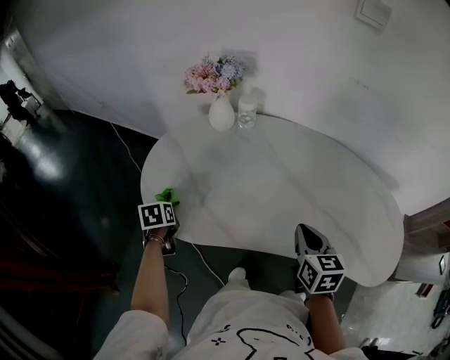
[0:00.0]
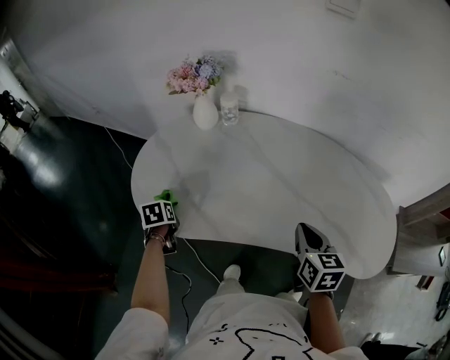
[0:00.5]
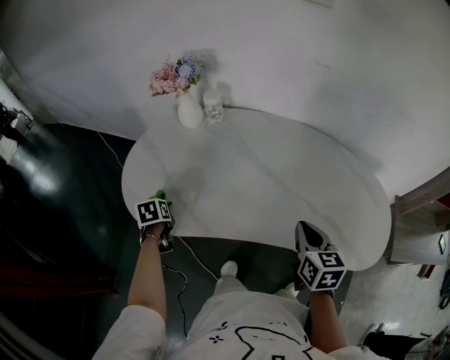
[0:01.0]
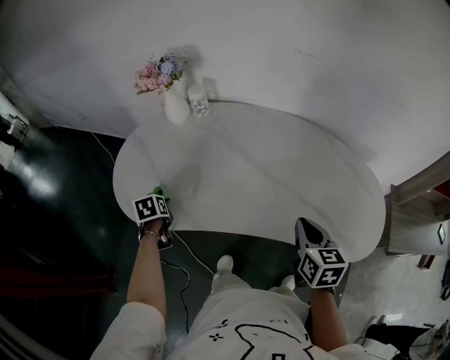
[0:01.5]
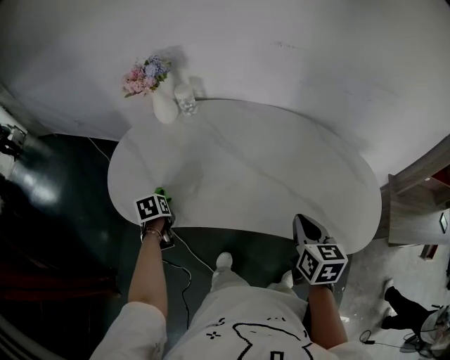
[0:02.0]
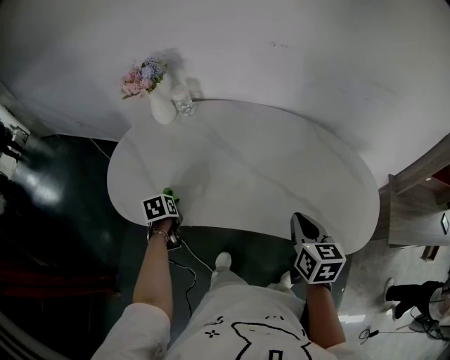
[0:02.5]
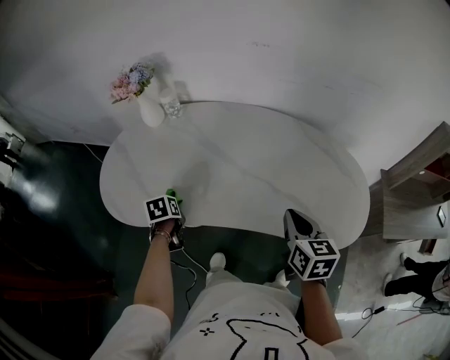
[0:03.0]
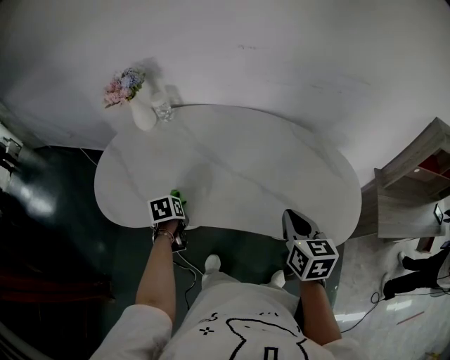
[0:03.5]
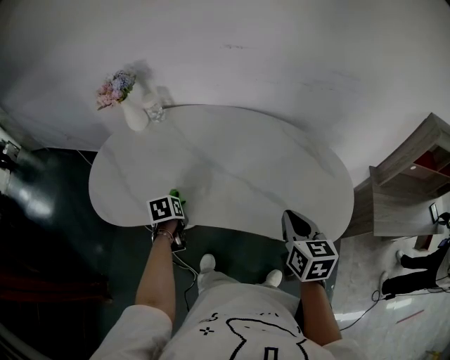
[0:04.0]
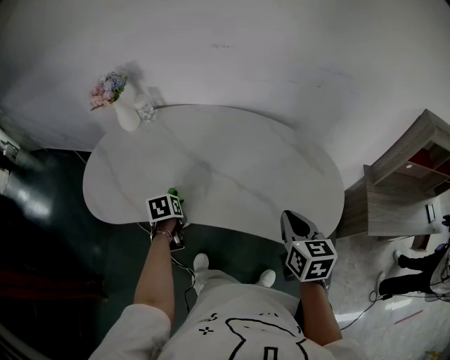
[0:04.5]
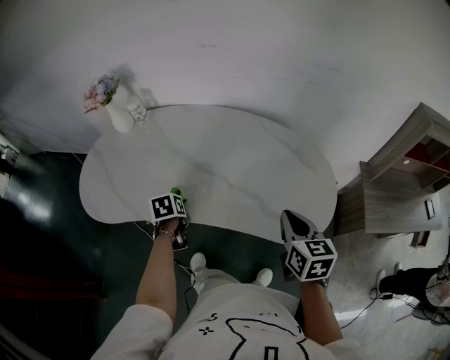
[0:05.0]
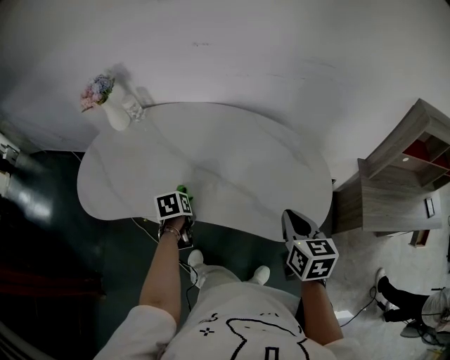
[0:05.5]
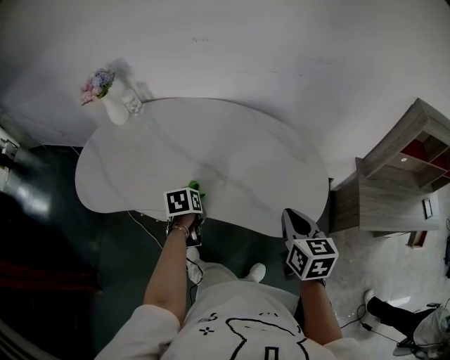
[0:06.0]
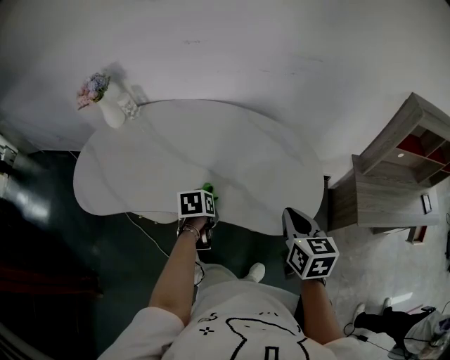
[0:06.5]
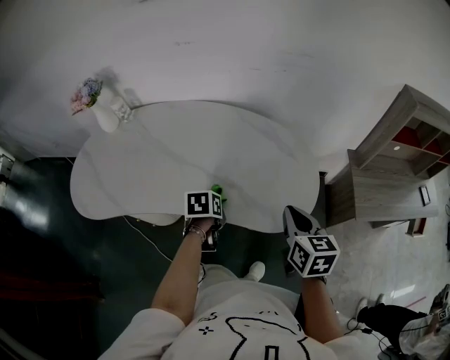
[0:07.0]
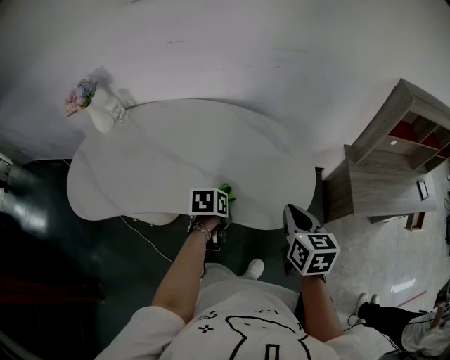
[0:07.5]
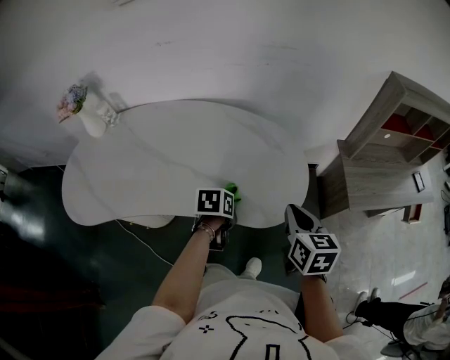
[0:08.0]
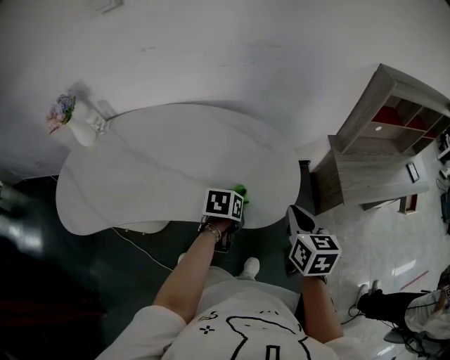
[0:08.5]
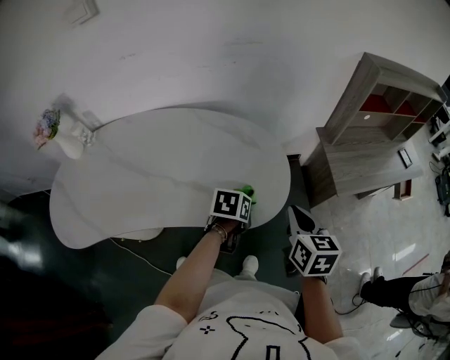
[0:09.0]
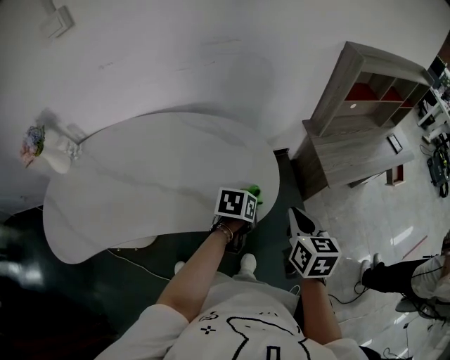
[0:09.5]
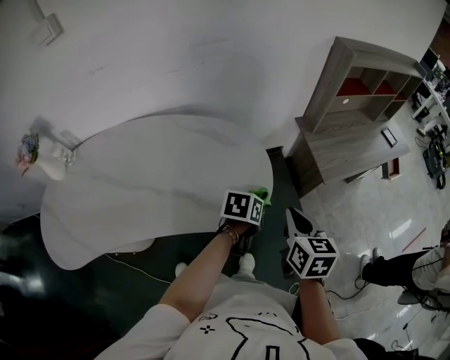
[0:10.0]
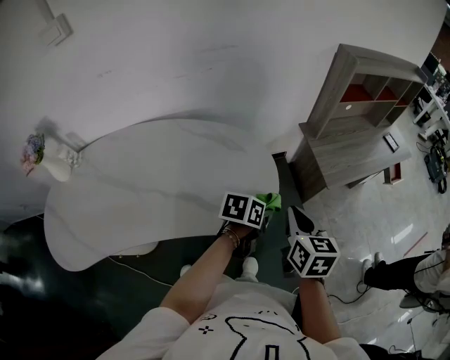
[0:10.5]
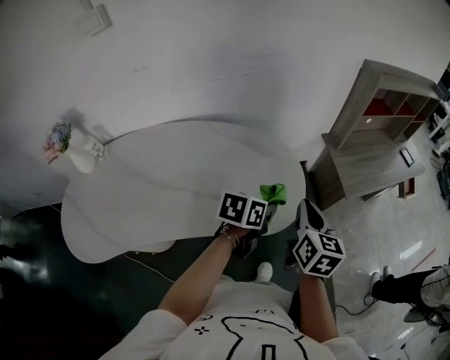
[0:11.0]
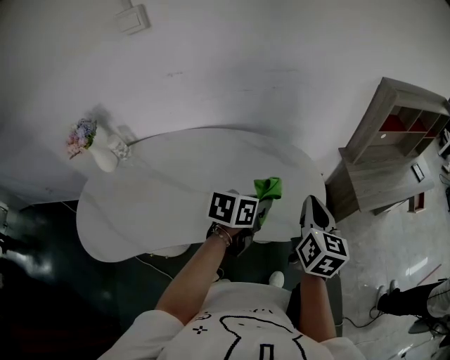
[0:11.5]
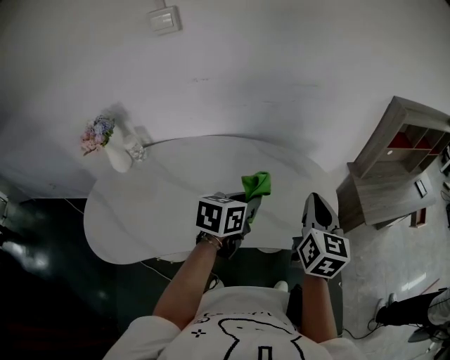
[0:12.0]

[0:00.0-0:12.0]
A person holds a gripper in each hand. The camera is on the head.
0:00.0 to 0:02.0: The right gripper heads to the right and backward, covering some 20 cm. Meanwhile the left gripper moves to the right, roughly 15 cm.
0:02.0 to 0:04.0: The right gripper shifts roughly 10 cm to the right. Meanwhile the left gripper heads to the right, covering roughly 20 cm.
0:04.0 to 0:06.0: The right gripper moves to the right and backward, about 15 cm, while the left gripper travels to the right by approximately 20 cm.
0:06.0 to 0:08.0: The right gripper is displaced to the right by approximately 5 cm; the left gripper travels to the right by about 20 cm, and rotates about 30 degrees.
0:08.0 to 0:10.0: The right gripper moves about 10 cm; the left gripper ends up about 20 cm from where it was, and swivels approximately 30 degrees.
0:10.0 to 0:12.0: Both grippers move to the left and upward, about 30 cm. The right gripper rotates approximately 20 degrees; the left gripper turns by about 30 degrees.

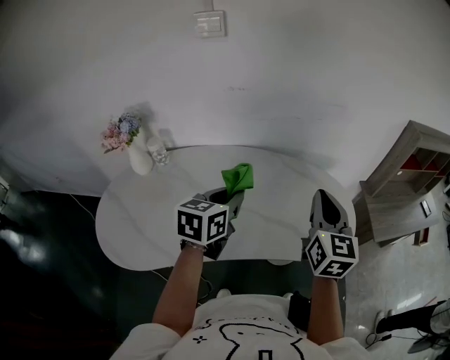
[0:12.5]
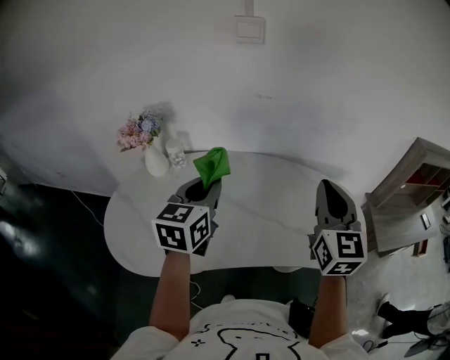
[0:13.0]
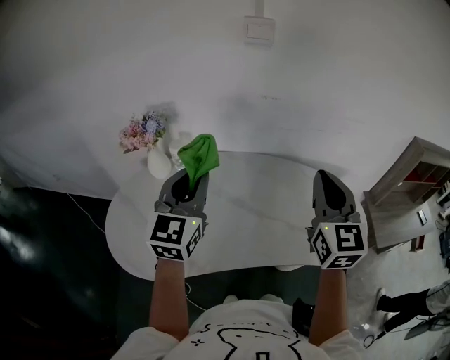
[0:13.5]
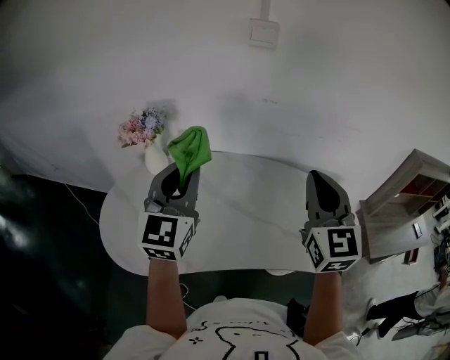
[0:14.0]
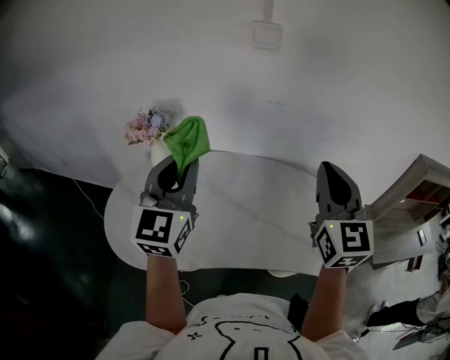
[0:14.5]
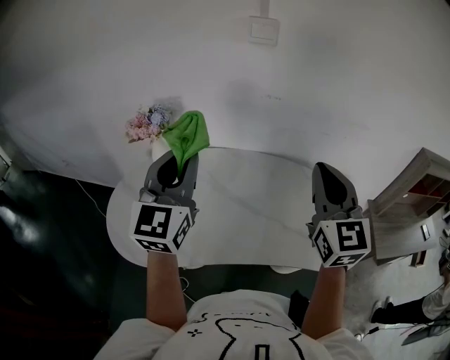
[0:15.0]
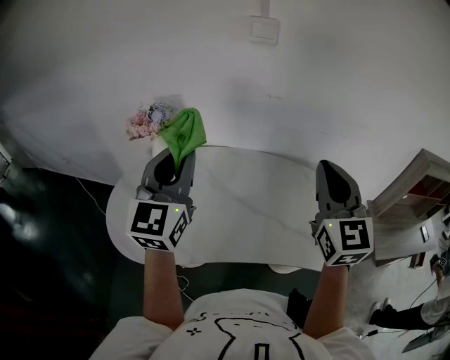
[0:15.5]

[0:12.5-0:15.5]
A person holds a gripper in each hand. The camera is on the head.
0:12.5 to 0:14.0: Both grippers move to the left and upward, approximately 20 cm. The right gripper swivels about 20 degrees. The left gripper tips its fingers upward by about 30 degrees.
0:14.0 to 0:15.5: There are only small adjustments of the grippers.

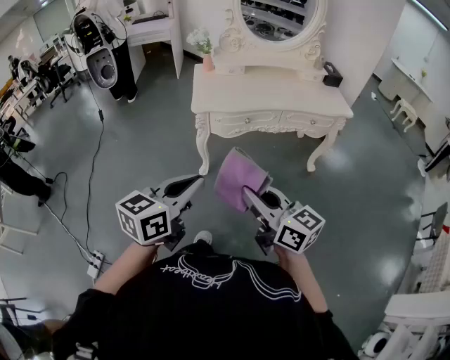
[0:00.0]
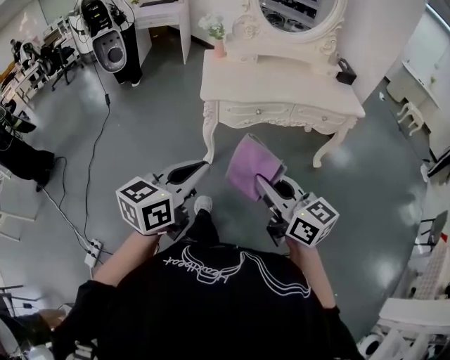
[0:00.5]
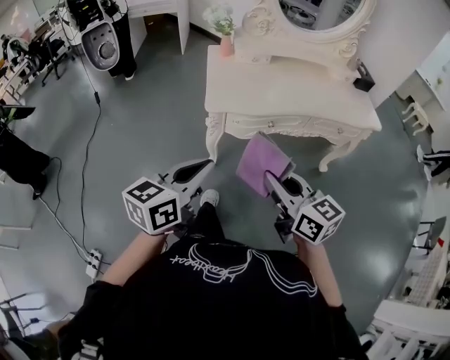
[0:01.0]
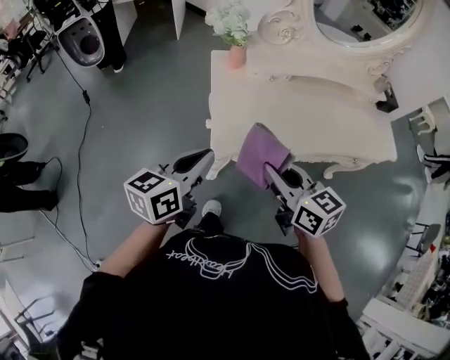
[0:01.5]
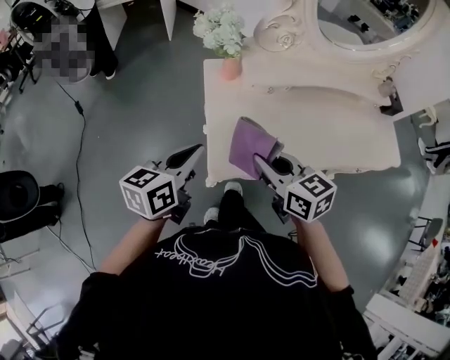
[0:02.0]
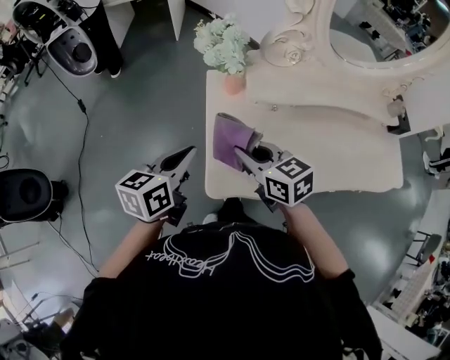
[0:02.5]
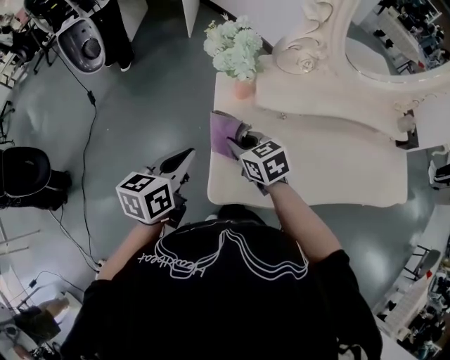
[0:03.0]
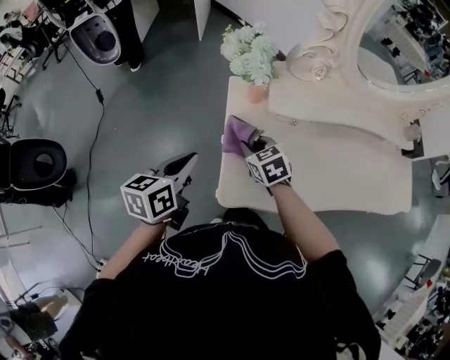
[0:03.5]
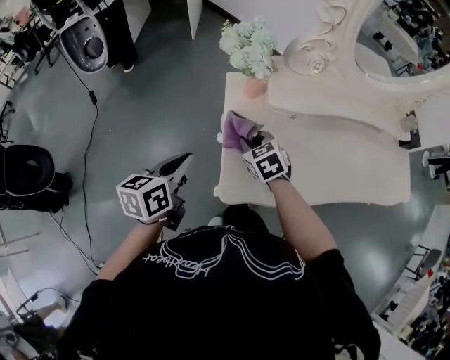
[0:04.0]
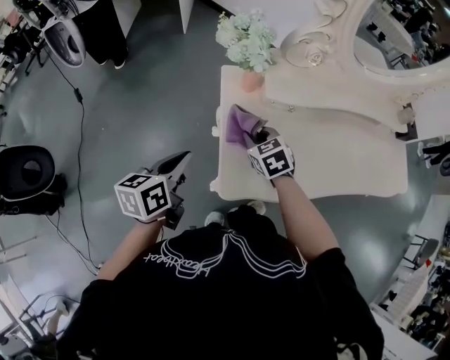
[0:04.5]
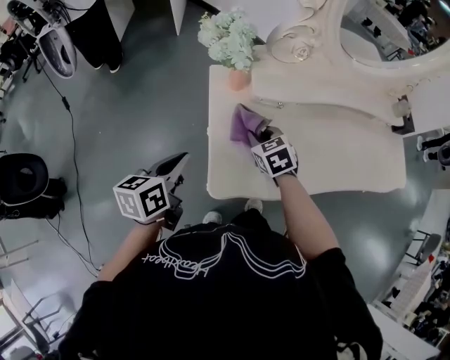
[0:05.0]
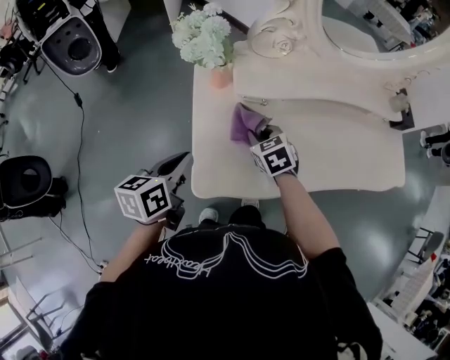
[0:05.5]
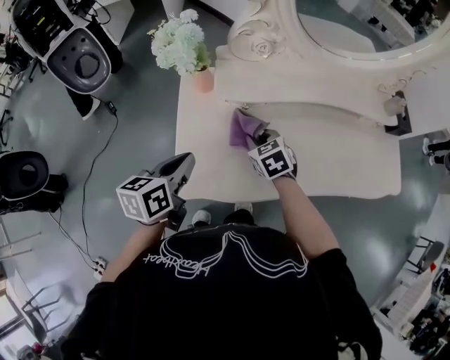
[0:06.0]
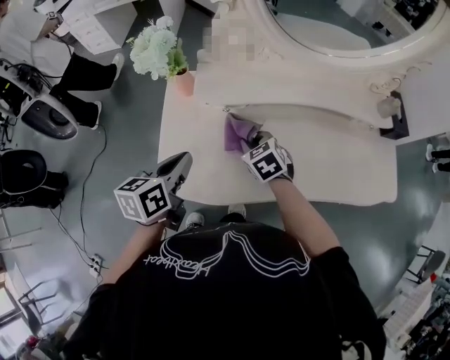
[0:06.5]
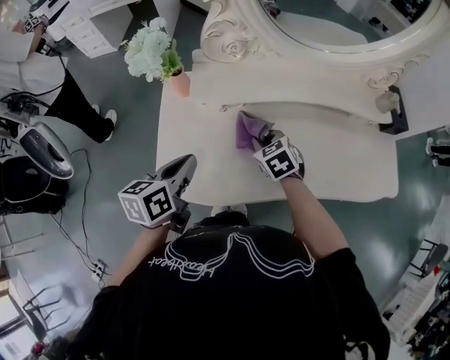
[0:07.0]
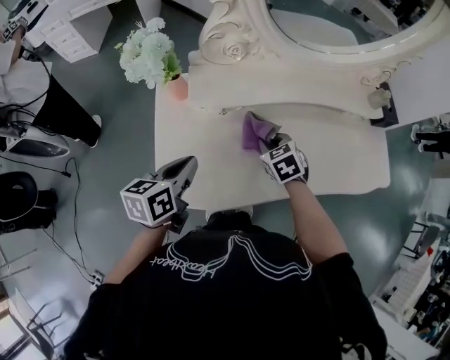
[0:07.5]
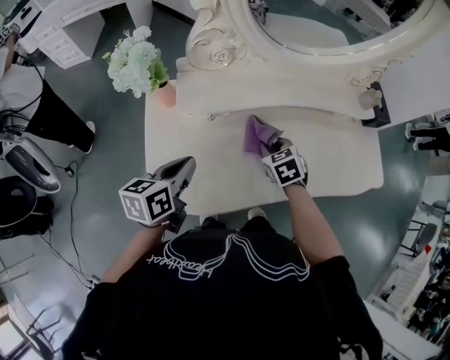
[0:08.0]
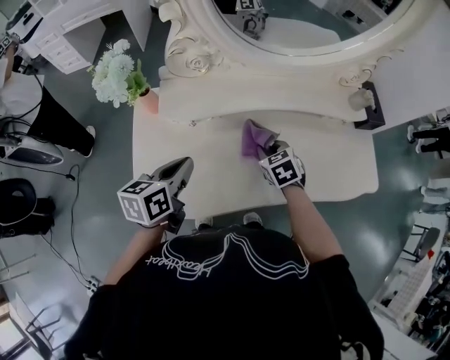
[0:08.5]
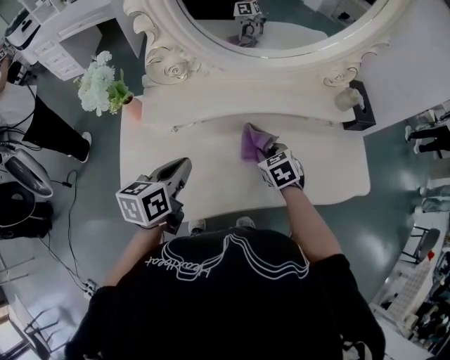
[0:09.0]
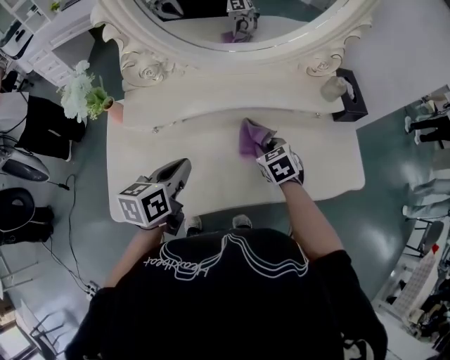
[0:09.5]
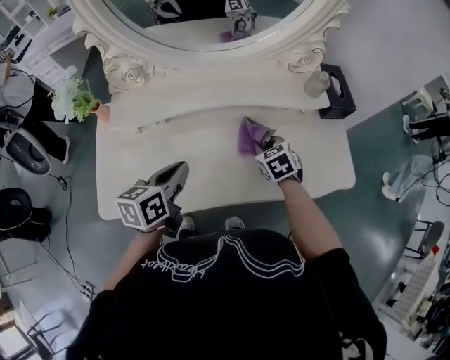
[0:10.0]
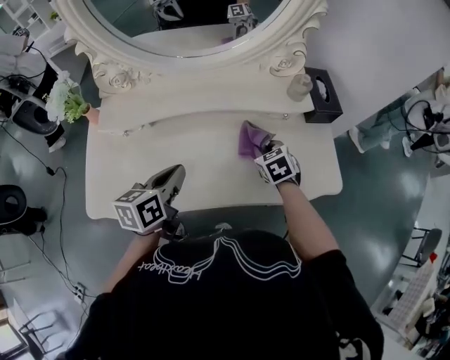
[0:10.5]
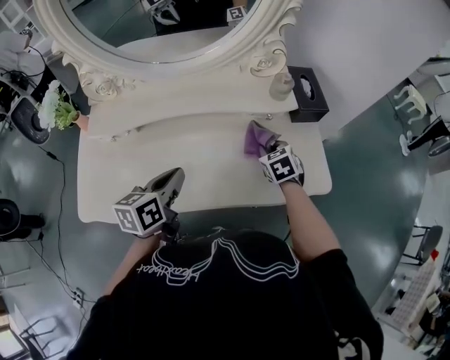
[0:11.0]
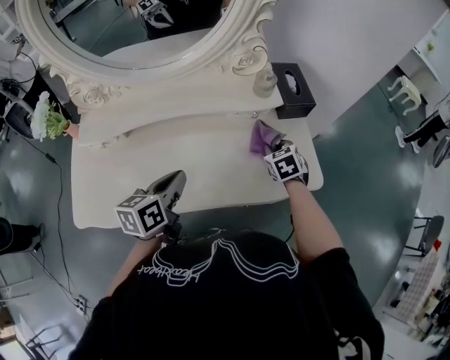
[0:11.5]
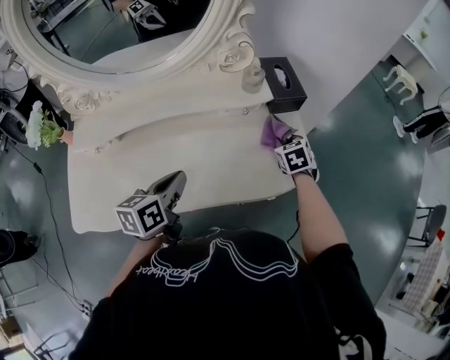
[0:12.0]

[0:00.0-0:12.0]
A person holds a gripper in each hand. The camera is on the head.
0:00.0 to 0:02.0: The two grippers travel together, forward, about 60 cm. The right gripper turns by some 20 degrees.
0:02.0 to 0:04.0: The right gripper is displaced forward and downward by about 20 cm, and rotates roughly 30 degrees. The left gripper goes about 10 cm to the left and forward.
0:04.0 to 0:06.0: Both grippers move to the right, roughly 15 cm.
0:06.0 to 0:08.0: The right gripper heads to the right, covering approximately 15 cm; the left gripper moves to the right, some 10 cm.
0:08.0 to 0:10.0: The two grippers go some 20 cm to the right.
0:10.0 to 0:12.0: The right gripper travels to the right by roughly 25 cm. Meanwhile the left gripper heads to the right, covering some 15 cm.
